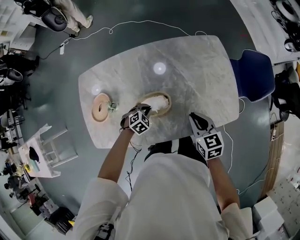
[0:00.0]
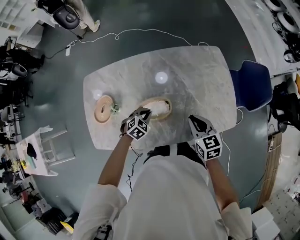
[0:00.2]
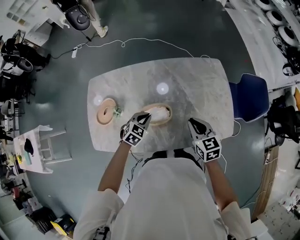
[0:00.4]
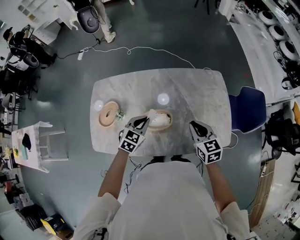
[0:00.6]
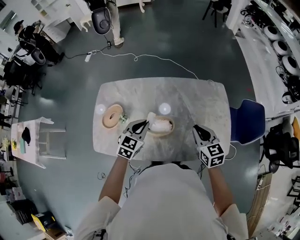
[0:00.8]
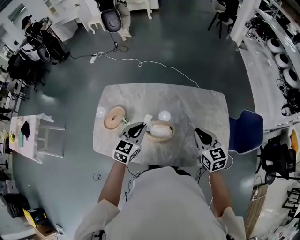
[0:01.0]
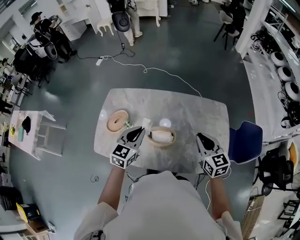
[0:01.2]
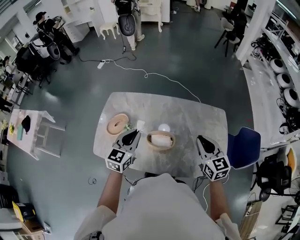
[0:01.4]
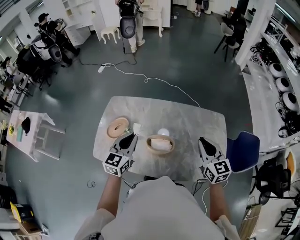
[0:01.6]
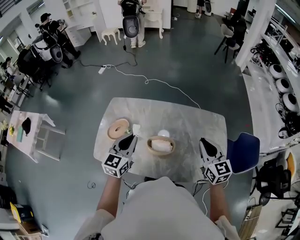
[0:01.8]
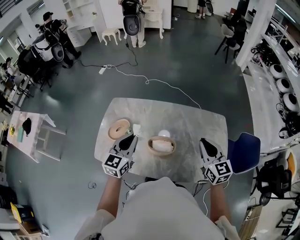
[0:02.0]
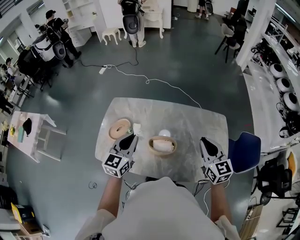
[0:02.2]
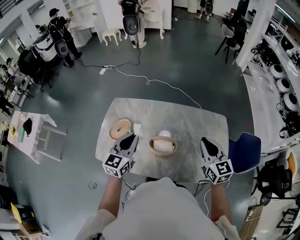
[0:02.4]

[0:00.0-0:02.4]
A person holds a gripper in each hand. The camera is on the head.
0:00.0 to 0:01.2: The right gripper shifts some 15 cm upward, and changes its angle by about 20 degrees. Meanwhile the left gripper moves upward, roughly 35 cm, and tilts its fingers approximately 50 degrees upward.
0:01.2 to 0:02.4: The left gripper heads upward and to the left, covering some 10 cm. Meanwhile the right gripper shifts some 5 cm upward.

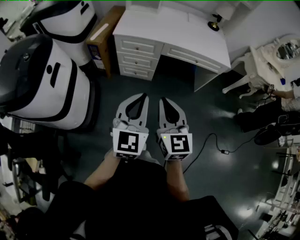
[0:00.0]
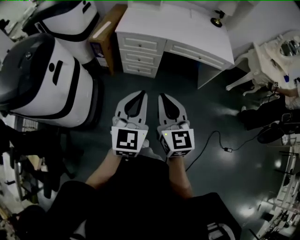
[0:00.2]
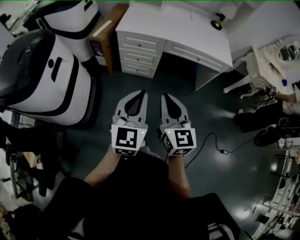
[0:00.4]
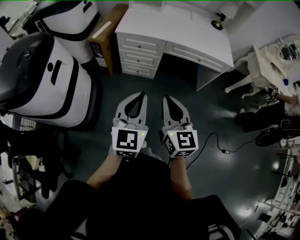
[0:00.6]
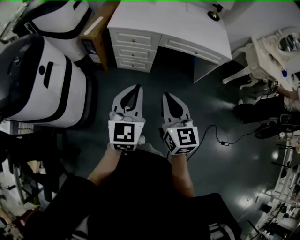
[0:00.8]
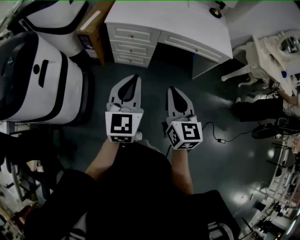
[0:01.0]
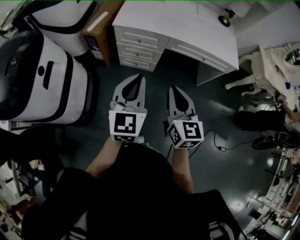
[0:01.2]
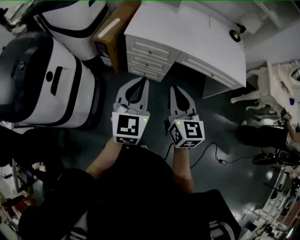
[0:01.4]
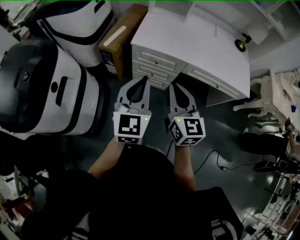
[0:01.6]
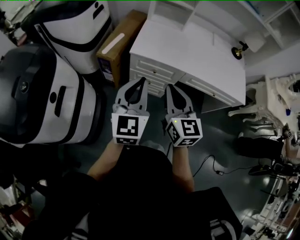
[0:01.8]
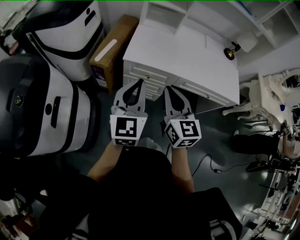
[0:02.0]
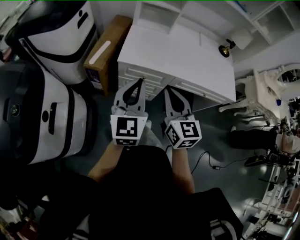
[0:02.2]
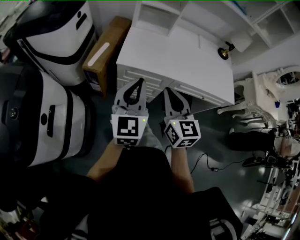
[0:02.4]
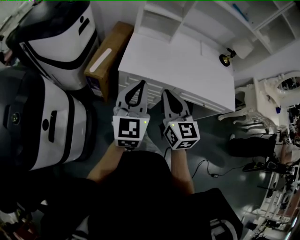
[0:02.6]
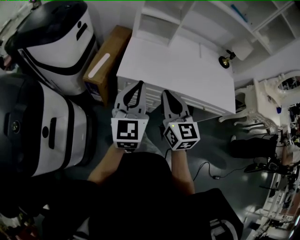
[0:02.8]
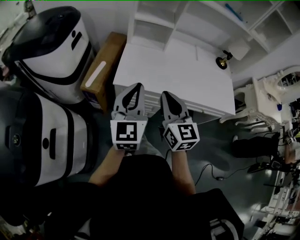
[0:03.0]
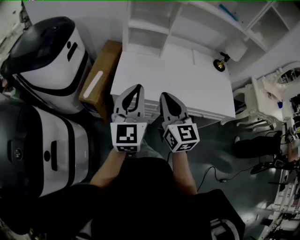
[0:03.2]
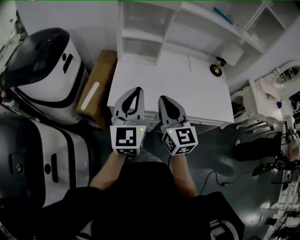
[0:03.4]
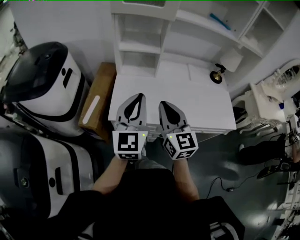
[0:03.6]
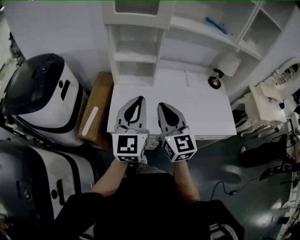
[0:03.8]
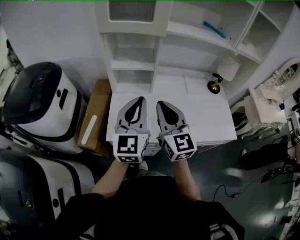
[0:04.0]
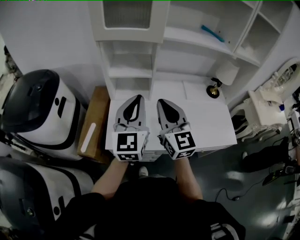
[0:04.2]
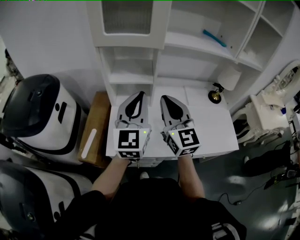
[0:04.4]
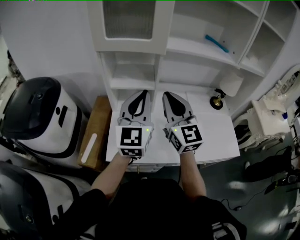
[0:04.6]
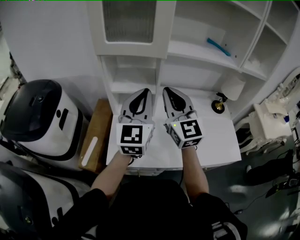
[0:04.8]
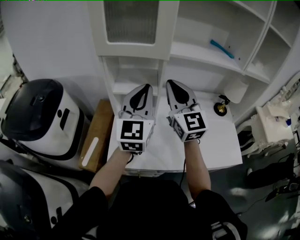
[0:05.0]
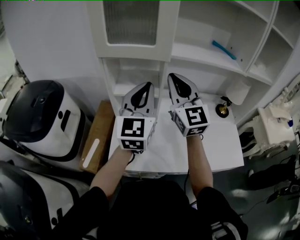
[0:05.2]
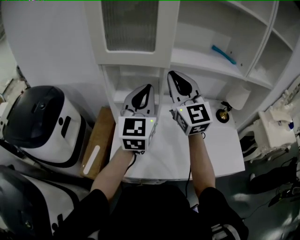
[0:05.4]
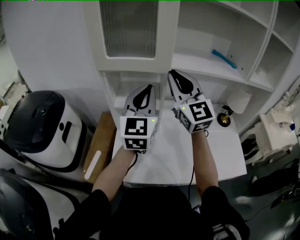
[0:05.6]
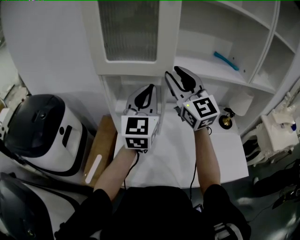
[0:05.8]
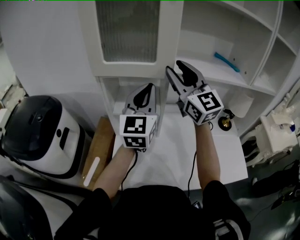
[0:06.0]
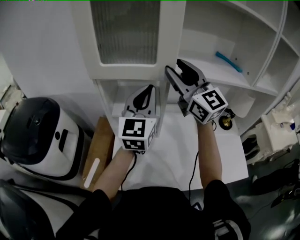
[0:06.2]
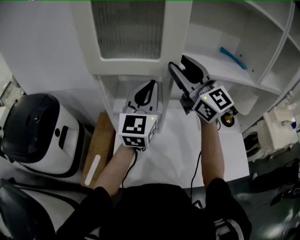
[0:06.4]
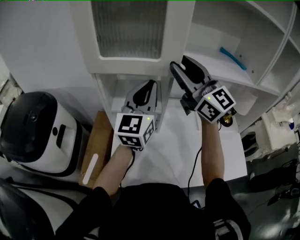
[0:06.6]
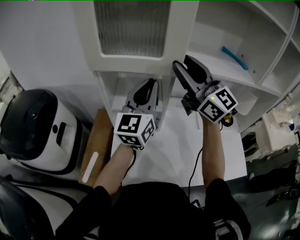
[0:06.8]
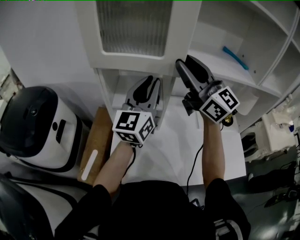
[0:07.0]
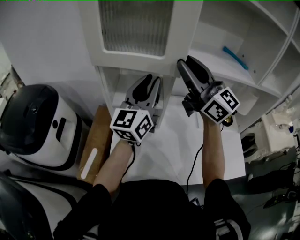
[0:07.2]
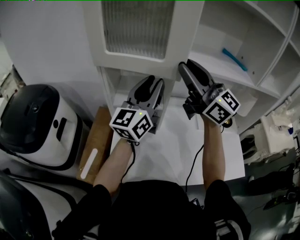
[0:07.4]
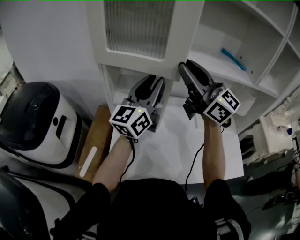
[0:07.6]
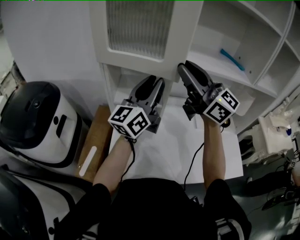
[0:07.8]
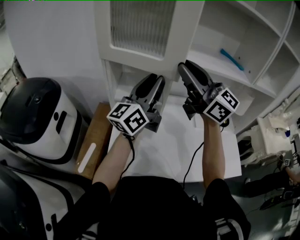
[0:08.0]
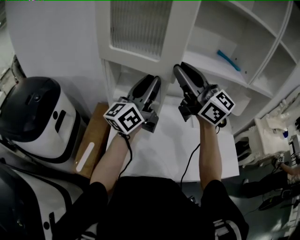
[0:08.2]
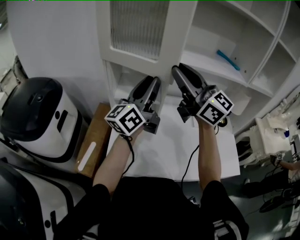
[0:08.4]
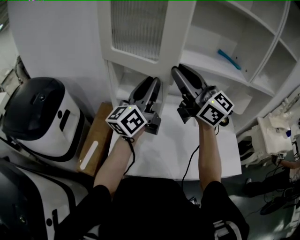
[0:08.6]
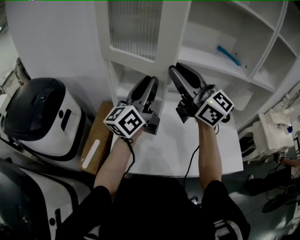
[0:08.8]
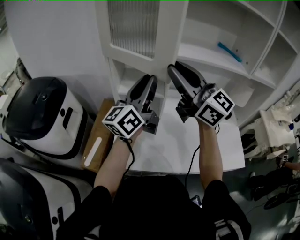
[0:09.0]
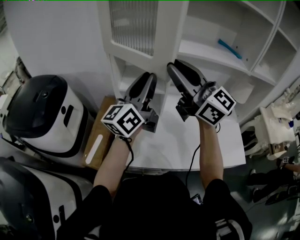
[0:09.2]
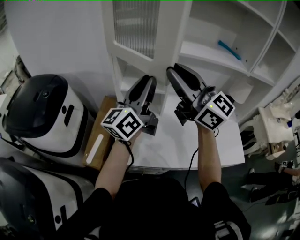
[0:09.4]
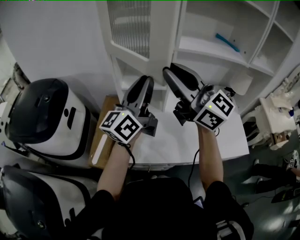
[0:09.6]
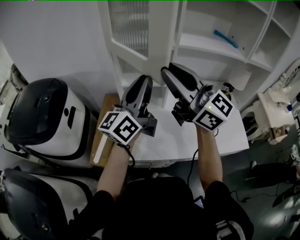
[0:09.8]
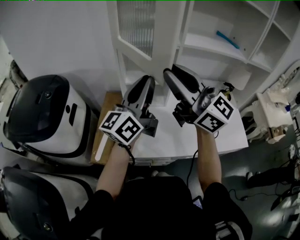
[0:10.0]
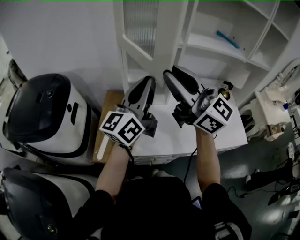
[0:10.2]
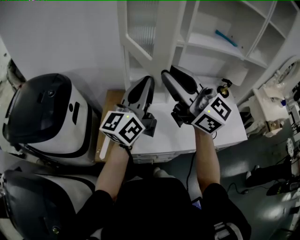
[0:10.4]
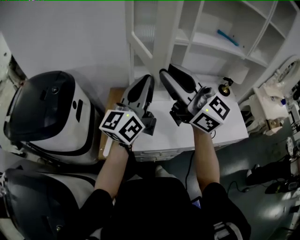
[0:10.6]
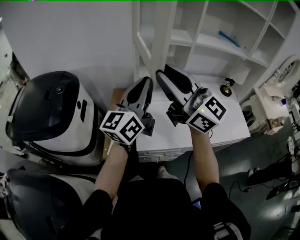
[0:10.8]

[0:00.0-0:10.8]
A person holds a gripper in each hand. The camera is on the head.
0:00.0 to 0:01.6: Both grippers move forward, approximately 25 cm.
0:01.6 to 0:03.0: Both grippers travel together forward, some 15 cm.
0:03.0 to 0:04.6: The two grippers go about 30 cm forward and upward.
0:04.6 to 0:06.2: The right gripper travels forward and upward by approximately 20 cm, and opens its fingers. The left gripper moves forward, some 15 cm.
0:06.2 to 0:07.8: The left gripper rotates approximately 30 degrees, and opens, while the right gripper goes approximately 5 cm backward, swivels about 20 degrees, and closes its fingers.
0:07.8 to 0:09.2: The left gripper shifts some 5 cm backward. Meanwhile the right gripper moves backward and to the left, about 10 cm.
0:09.2 to 0:10.8: The right gripper moves to the left, some 20 cm, while the left gripper travels to the left and backward by approximately 20 cm.

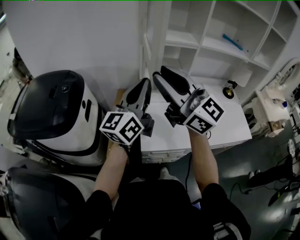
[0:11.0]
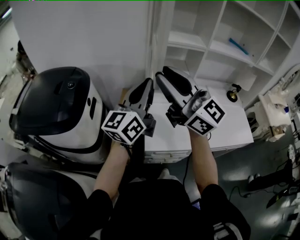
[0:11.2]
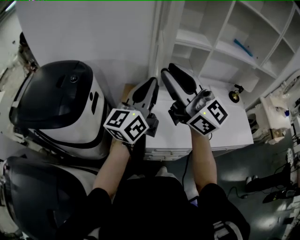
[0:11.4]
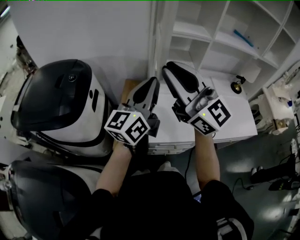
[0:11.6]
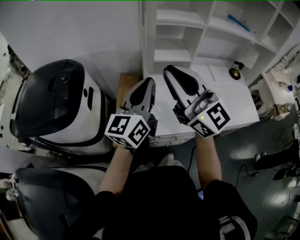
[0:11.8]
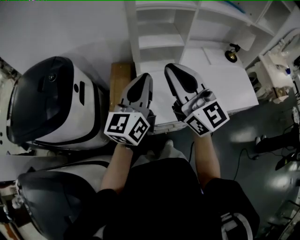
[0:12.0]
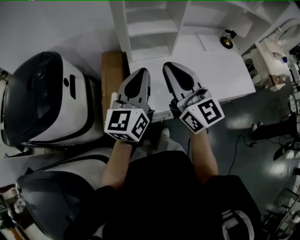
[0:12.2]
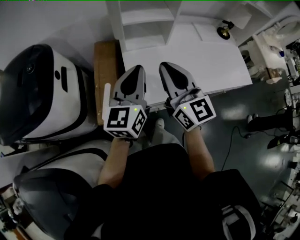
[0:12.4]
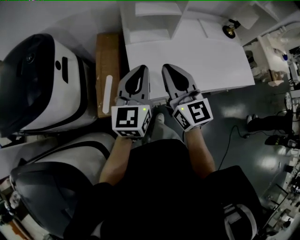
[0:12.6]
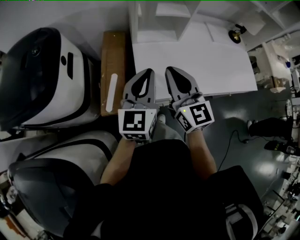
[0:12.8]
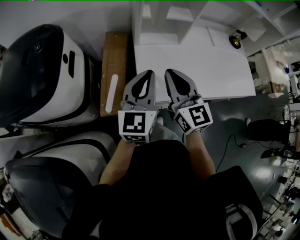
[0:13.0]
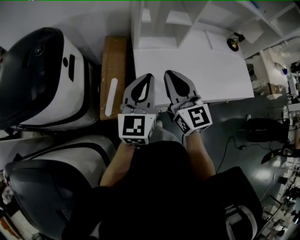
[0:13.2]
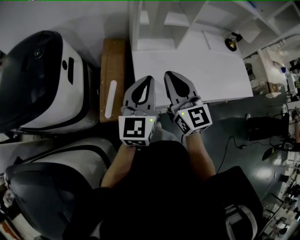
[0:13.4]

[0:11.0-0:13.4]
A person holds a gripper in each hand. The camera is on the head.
0:11.0 to 0:12.2: The two grippers go some 15 cm downward. The right gripper turns by approximately 30 degrees.
0:12.2 to 0:13.4: Both grippers move downward, about 10 cm.

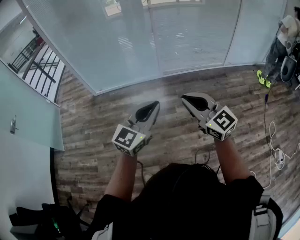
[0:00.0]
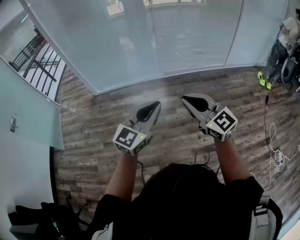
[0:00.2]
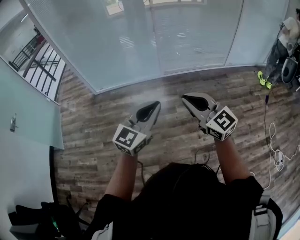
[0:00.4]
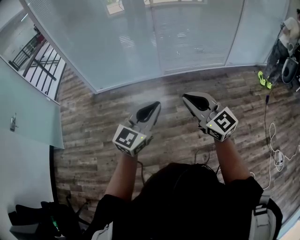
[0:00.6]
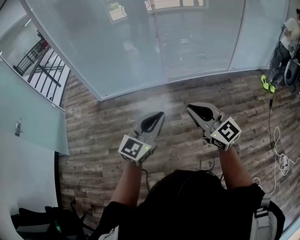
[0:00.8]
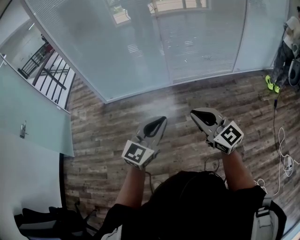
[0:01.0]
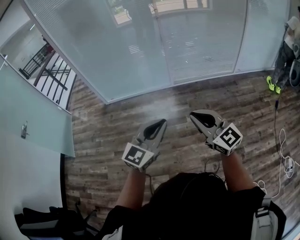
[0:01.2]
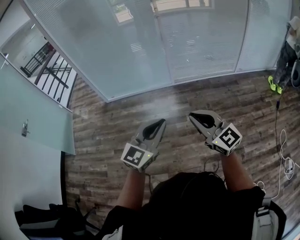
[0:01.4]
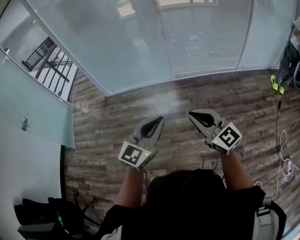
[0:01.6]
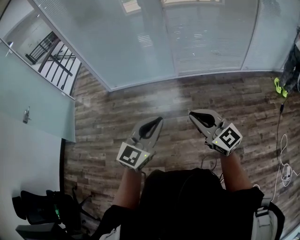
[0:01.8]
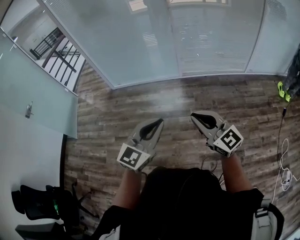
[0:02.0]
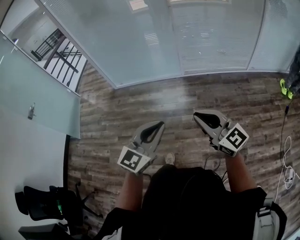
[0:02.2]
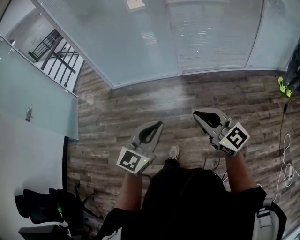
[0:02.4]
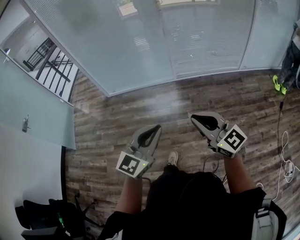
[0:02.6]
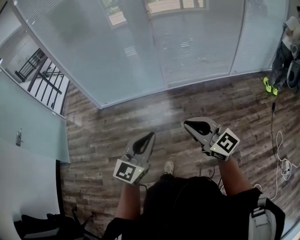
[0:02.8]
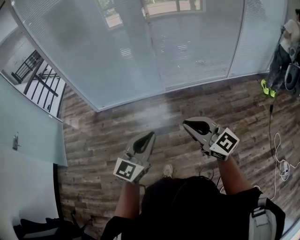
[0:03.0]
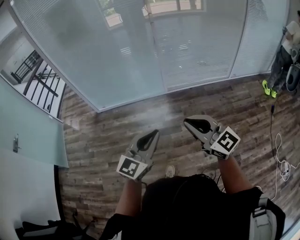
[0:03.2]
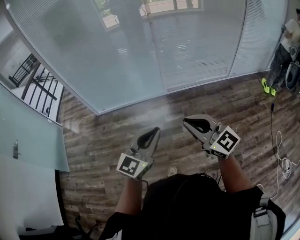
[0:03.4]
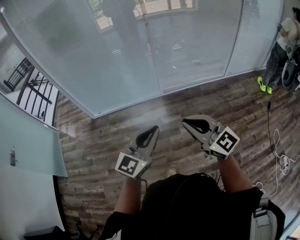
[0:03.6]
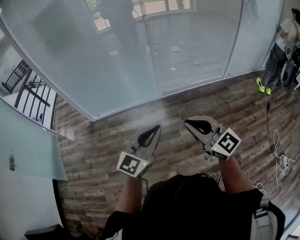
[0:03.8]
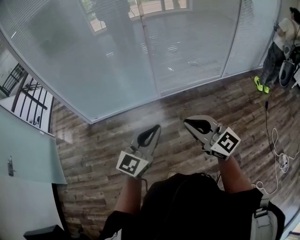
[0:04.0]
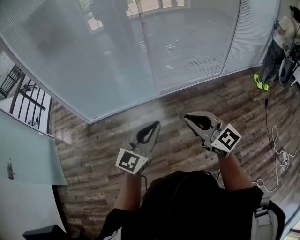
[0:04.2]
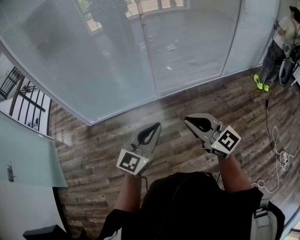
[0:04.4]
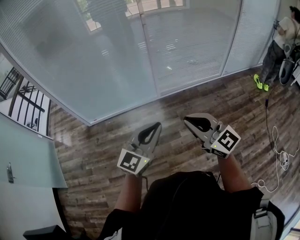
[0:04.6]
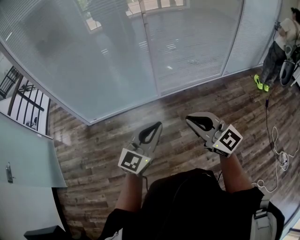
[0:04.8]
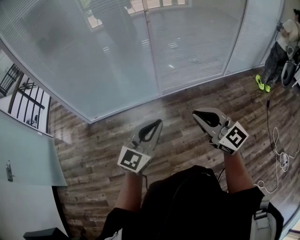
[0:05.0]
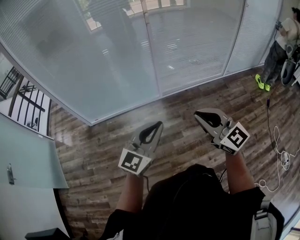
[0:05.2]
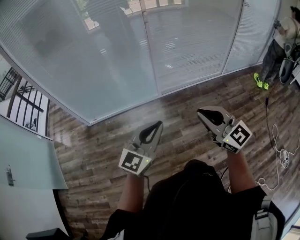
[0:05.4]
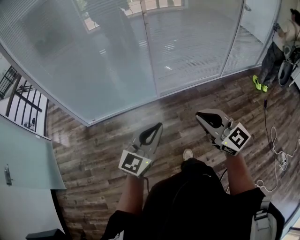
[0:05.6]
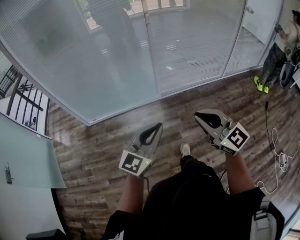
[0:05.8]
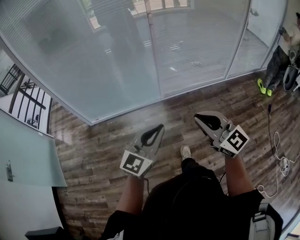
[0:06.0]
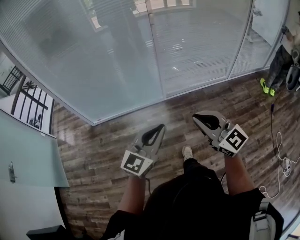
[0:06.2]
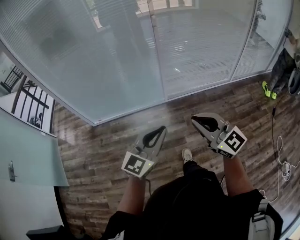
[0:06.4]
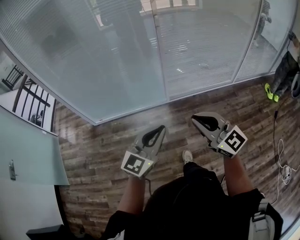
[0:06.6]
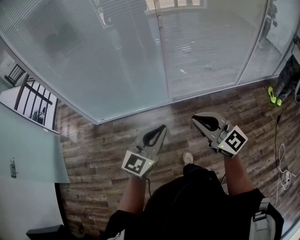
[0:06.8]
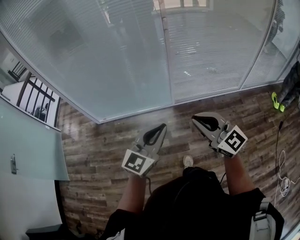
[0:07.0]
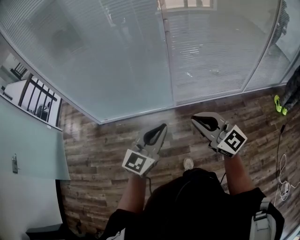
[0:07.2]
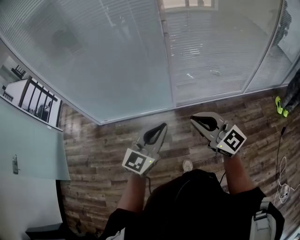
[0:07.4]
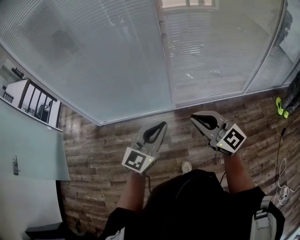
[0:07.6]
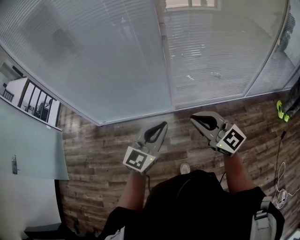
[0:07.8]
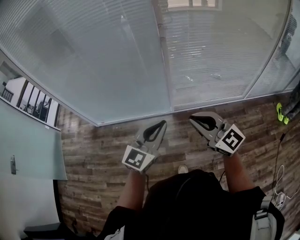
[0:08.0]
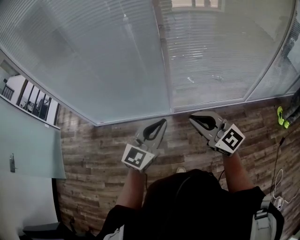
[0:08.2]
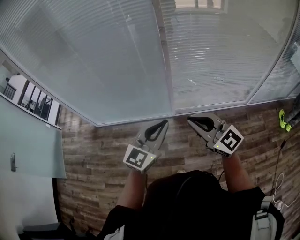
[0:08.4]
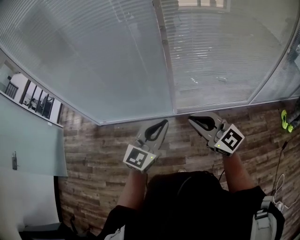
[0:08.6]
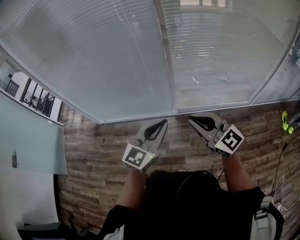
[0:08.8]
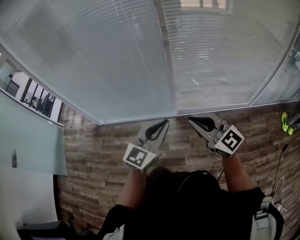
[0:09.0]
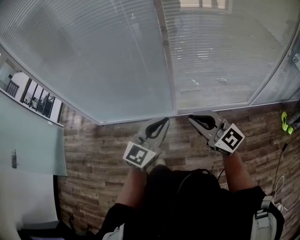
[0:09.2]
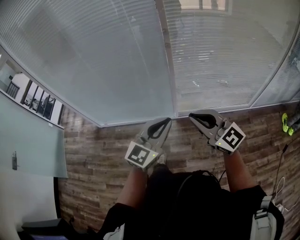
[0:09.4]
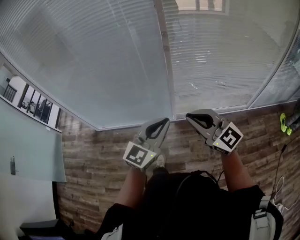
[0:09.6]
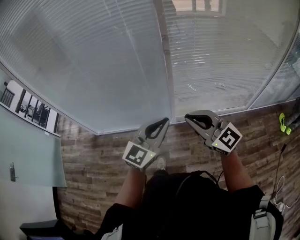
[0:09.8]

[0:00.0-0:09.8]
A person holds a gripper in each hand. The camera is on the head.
0:00.0 to 0:02.8: The grippers stay close to where they were, moving slightly.
0:02.8 to 0:04.2: The grippers both shift forward by roughly 15 cm.
0:04.2 to 0:05.6: The grippers stay close to where they were, moving slightly.
0:05.6 to 0:07.0: Both grippers travel together forward, about 10 cm.
0:07.0 to 0:08.4: The grippers both shift forward and to the right by about 15 cm.
0:08.4 to 0:09.8: The grippers both shift forward by roughly 5 cm.
